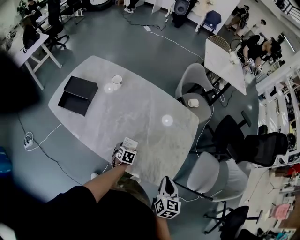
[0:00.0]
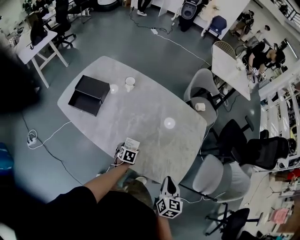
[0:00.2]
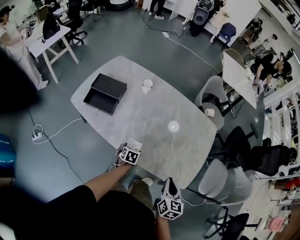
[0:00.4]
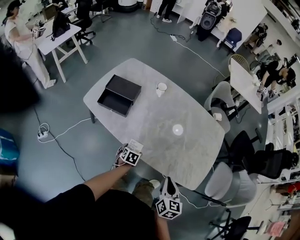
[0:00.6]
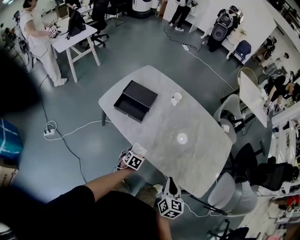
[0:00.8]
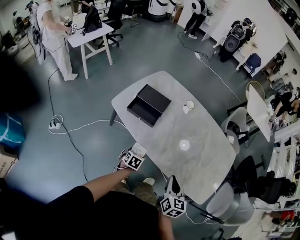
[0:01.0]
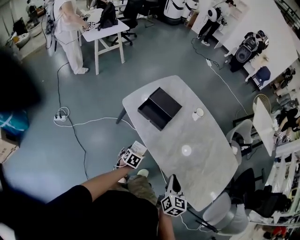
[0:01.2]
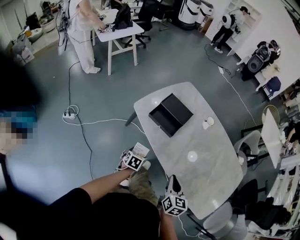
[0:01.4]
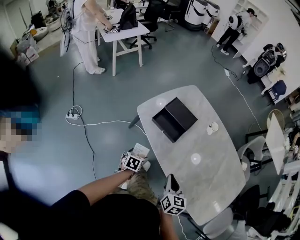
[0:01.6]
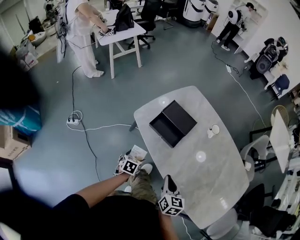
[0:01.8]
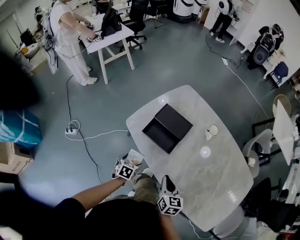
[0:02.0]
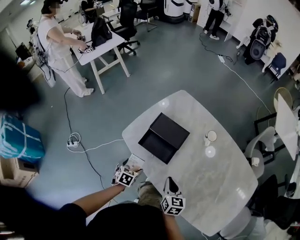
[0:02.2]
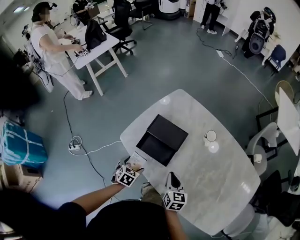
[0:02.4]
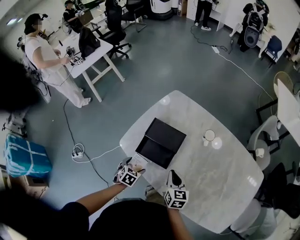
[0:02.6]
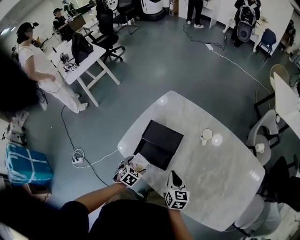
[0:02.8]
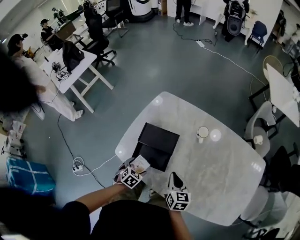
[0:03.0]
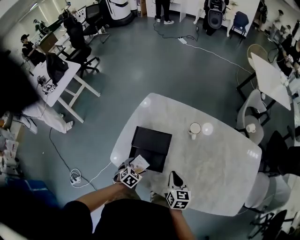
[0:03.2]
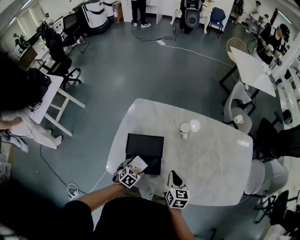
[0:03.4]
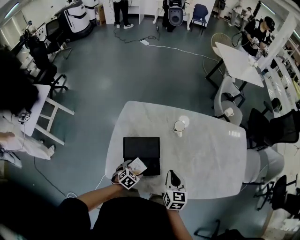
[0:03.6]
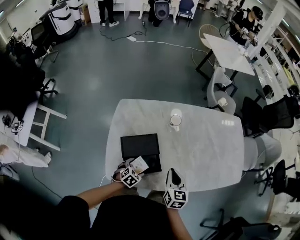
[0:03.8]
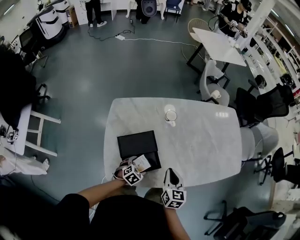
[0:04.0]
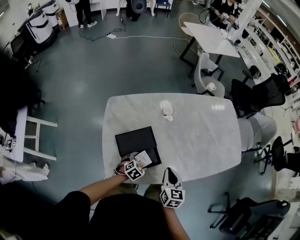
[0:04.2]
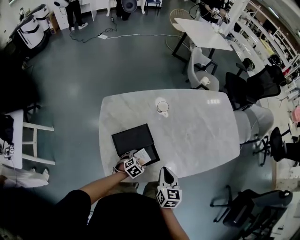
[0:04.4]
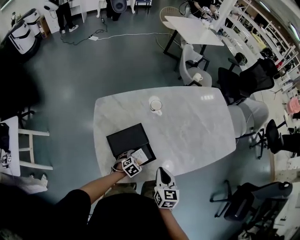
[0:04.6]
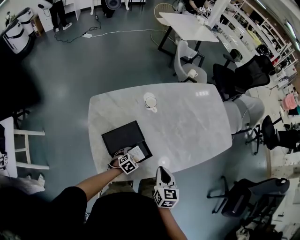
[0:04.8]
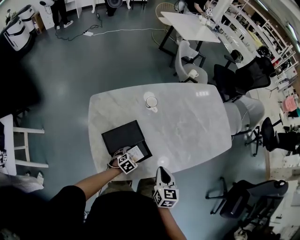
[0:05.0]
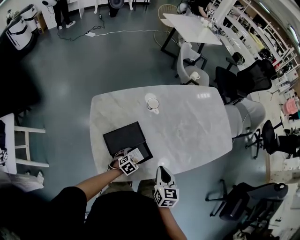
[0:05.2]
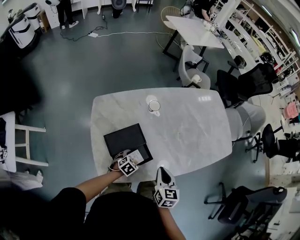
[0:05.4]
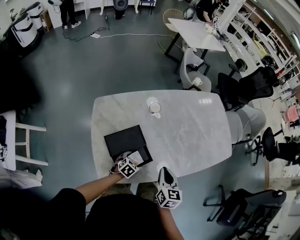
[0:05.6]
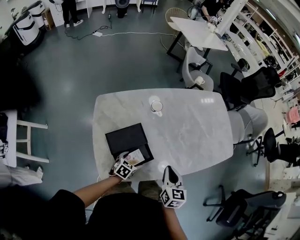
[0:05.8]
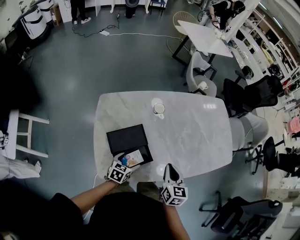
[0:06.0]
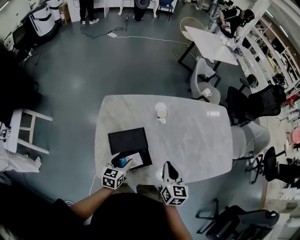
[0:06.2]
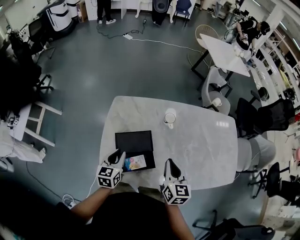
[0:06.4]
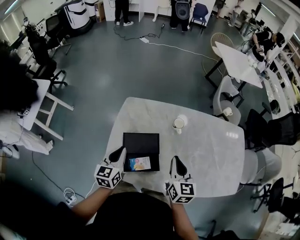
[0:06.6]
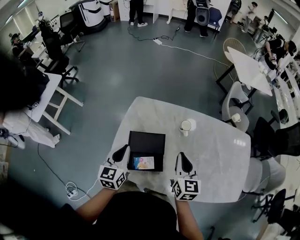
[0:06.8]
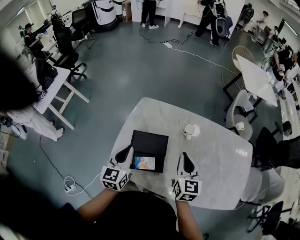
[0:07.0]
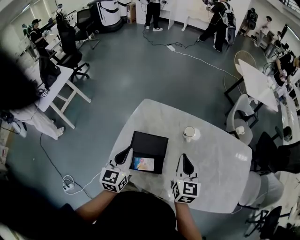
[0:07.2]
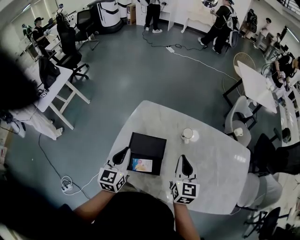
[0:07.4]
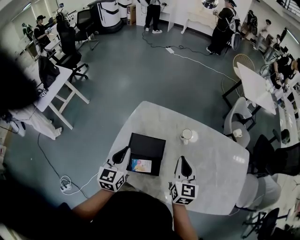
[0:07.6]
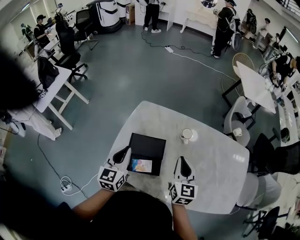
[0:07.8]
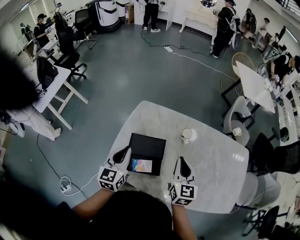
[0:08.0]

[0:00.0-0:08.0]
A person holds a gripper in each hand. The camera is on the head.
0:00.0 to 0:01.6: The pair of grippers is taken about 50 cm. The left gripper changes its angle by some 30 degrees, while the right gripper rotates about 30 degrees.
0:01.6 to 0:03.2: The right gripper moves some 25 cm, and rotates some 20 degrees, while the left gripper changes place by about 25 cm, and rolls clockwise, seen from behind, by approximately 50 degrees.
0:03.2 to 0:04.8: The left gripper shifts by roughly 10 cm, and rotates around the line of its fingers by some 40 degrees, clockwise from behind; the right gripper shifts by roughly 10 cm, and rotates approximately 40 degrees.
0:04.8 to 0:06.4: The left gripper is displaced upward by some 20 cm, angles its fingers upward, by about 30 degrees, and closes; the right gripper changes place by approximately 15 cm, and swivels about 20 degrees.
0:06.4 to 0:08.0: The right gripper moves upward, about 5 cm; the left gripper moves upward, roughly 10 cm, and turns by some 20 degrees.

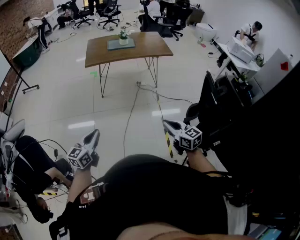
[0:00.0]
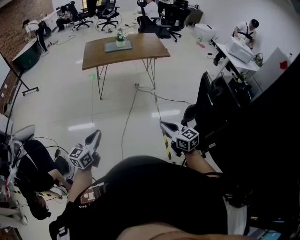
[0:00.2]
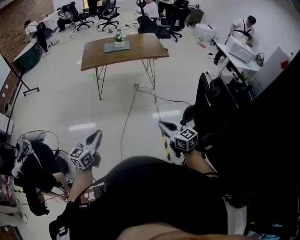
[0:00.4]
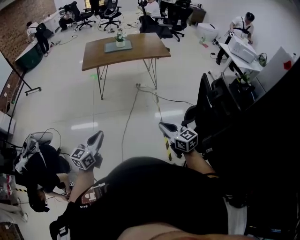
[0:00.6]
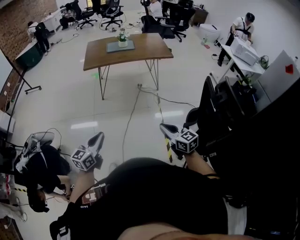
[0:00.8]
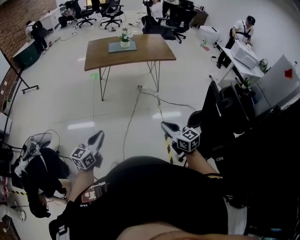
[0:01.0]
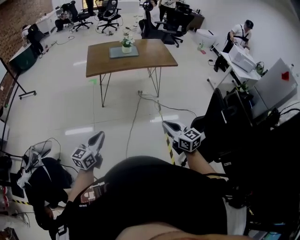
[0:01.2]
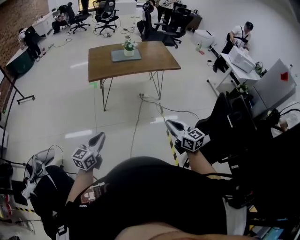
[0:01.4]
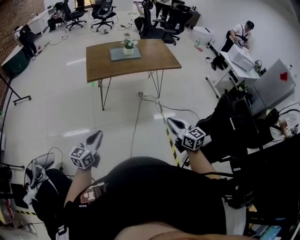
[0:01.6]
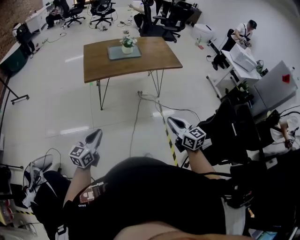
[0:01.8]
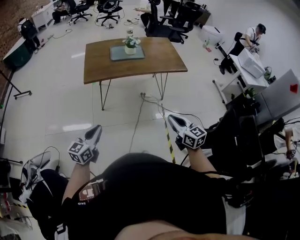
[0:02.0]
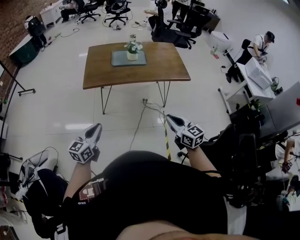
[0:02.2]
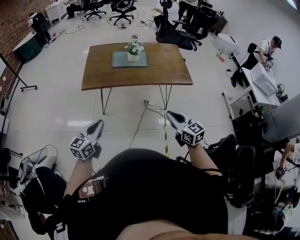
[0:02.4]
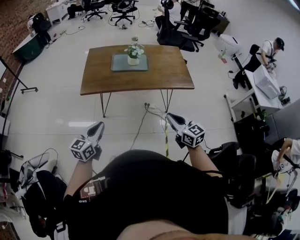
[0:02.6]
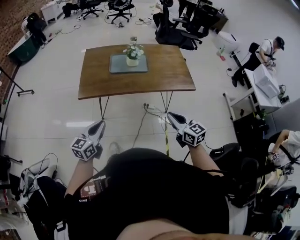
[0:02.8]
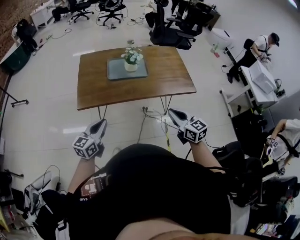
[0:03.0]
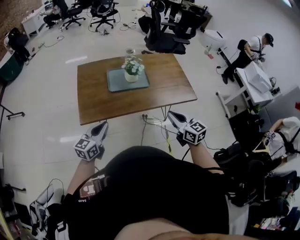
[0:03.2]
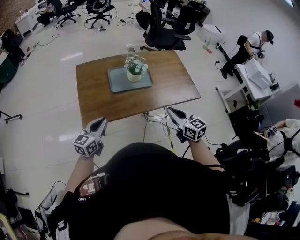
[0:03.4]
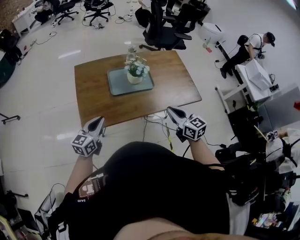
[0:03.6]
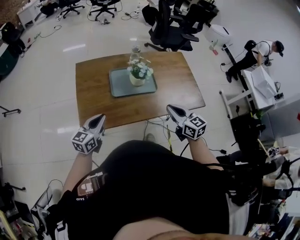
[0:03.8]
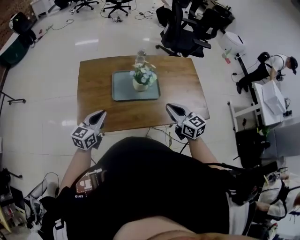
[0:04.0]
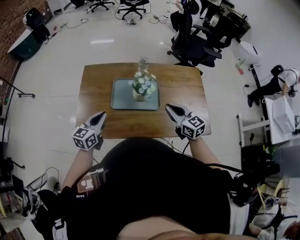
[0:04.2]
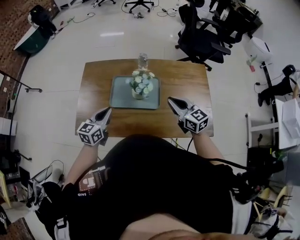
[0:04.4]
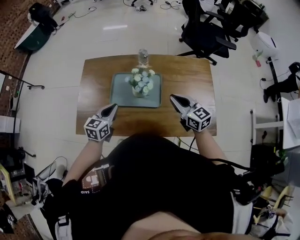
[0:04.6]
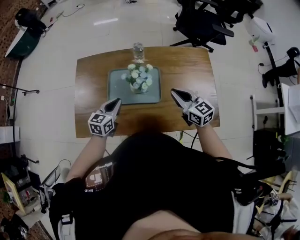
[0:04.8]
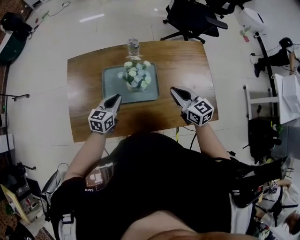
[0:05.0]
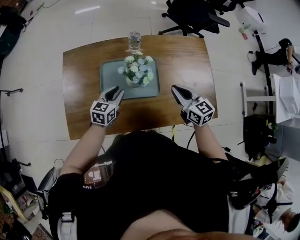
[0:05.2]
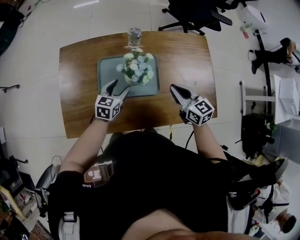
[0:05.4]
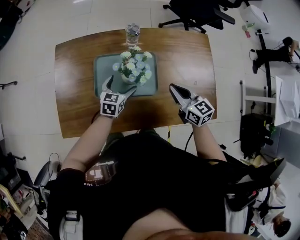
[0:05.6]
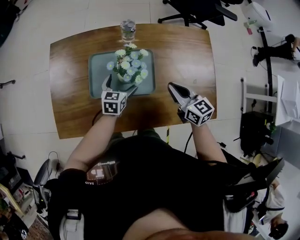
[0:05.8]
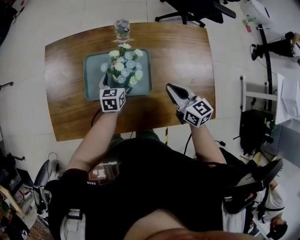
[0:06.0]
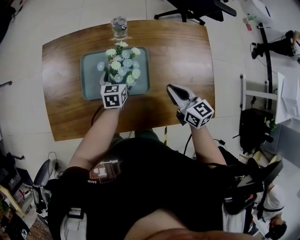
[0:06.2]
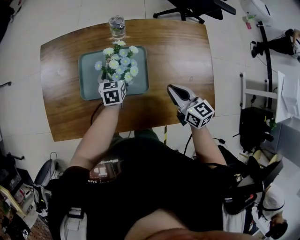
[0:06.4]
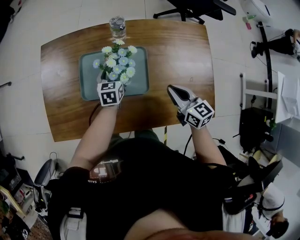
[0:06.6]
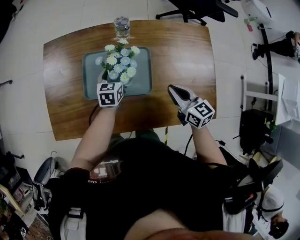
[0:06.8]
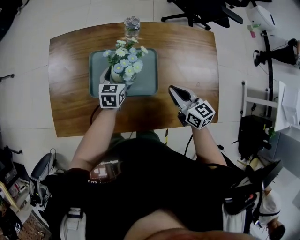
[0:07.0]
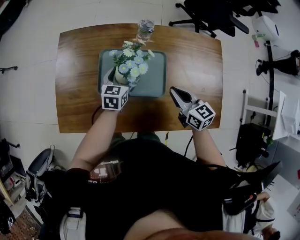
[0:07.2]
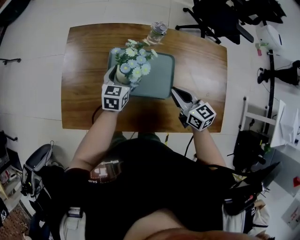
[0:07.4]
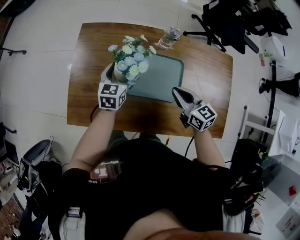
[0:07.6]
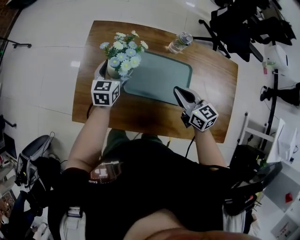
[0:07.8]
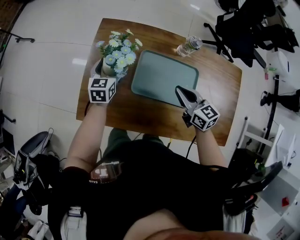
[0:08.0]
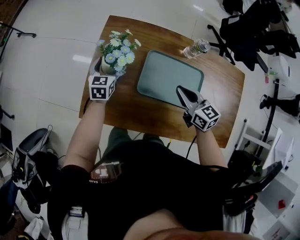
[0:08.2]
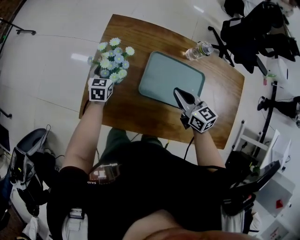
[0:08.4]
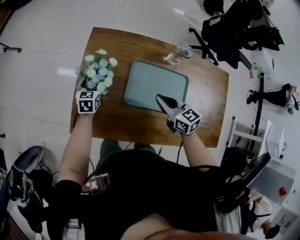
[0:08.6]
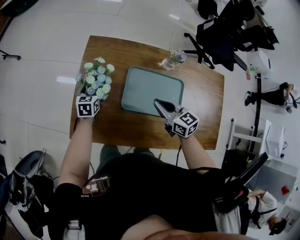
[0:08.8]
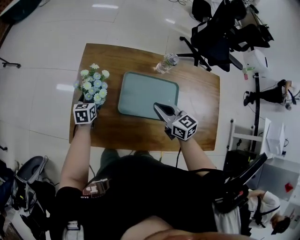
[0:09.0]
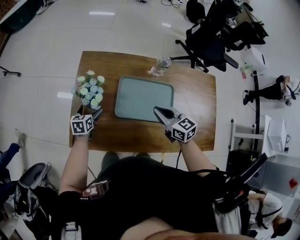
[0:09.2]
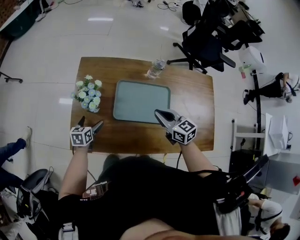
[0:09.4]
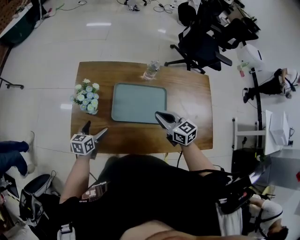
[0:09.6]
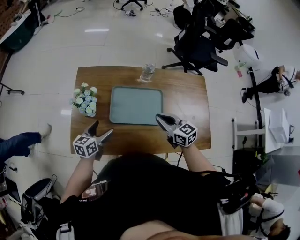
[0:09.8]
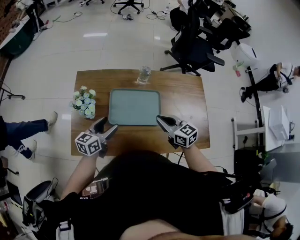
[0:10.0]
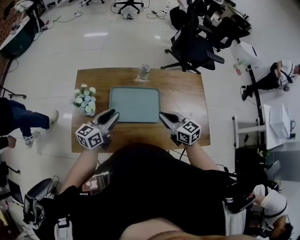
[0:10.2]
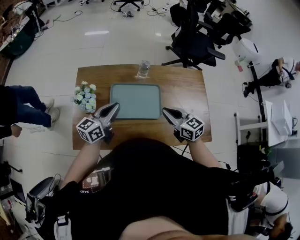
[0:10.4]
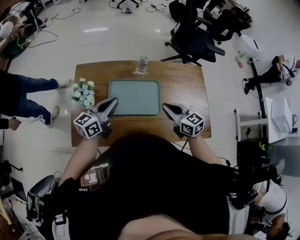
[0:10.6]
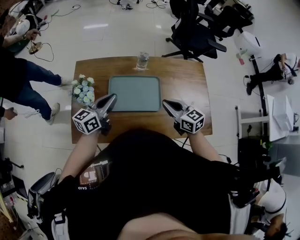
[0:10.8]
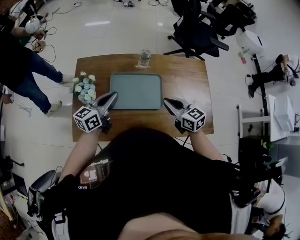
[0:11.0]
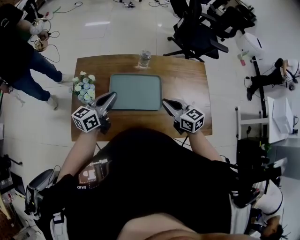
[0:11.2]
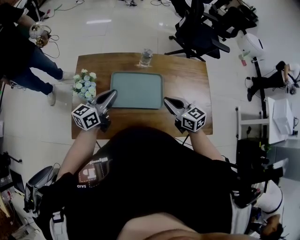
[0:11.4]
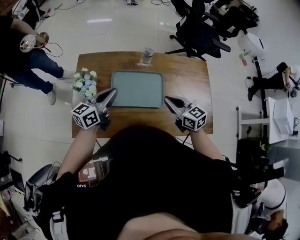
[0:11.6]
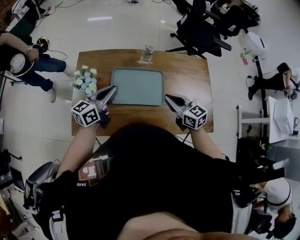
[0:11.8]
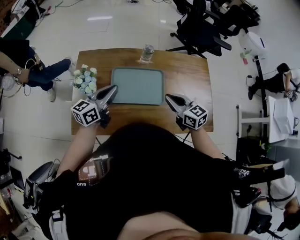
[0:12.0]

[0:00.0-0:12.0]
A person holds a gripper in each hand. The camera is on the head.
0:00.0 to 0:01.6: Both grippers move forward and to the left, some 25 cm.
0:01.6 to 0:03.0: The two grippers travel together, forward, about 40 cm.
0:03.0 to 0:04.4: Both grippers move forward, about 40 cm.
0:04.4 to 0:06.0: The left gripper heads downward, forward and to the right, covering some 30 cm, and opens up. Meanwhile the right gripper moves downward, about 15 cm.
0:06.0 to 0:07.6: The right gripper heads to the left, covering about 10 cm. Meanwhile the left gripper shifts some 15 cm to the left and upward.
0:07.6 to 0:09.0: The left gripper goes some 20 cm to the left and downward; the right gripper goes about 10 cm to the left.
0:09.0 to 0:10.4: The left gripper travels upward and to the right by approximately 30 cm, tips its fingers upward by about 40 degrees, and closes its fingers; the right gripper is displaced to the right, upward and backward by some 15 cm.
0:10.4 to 0:12.0: The two grippers keep their place.

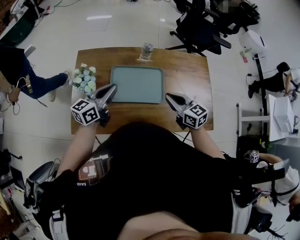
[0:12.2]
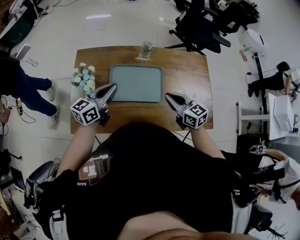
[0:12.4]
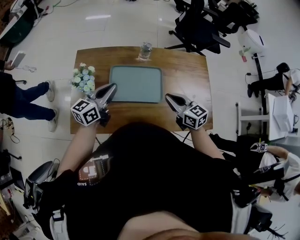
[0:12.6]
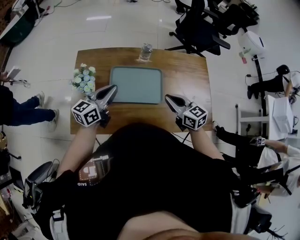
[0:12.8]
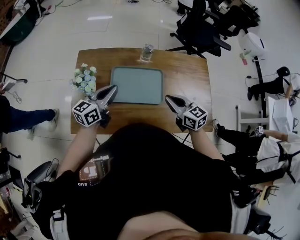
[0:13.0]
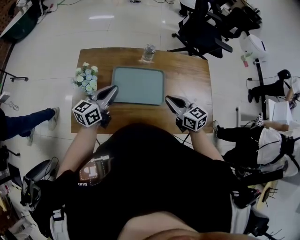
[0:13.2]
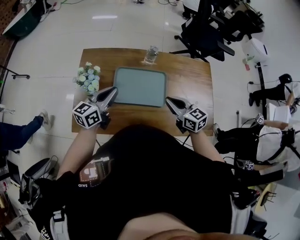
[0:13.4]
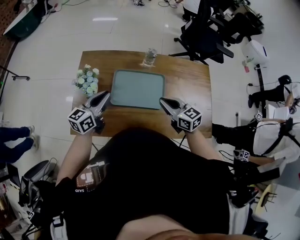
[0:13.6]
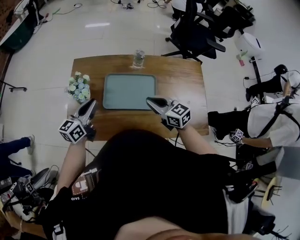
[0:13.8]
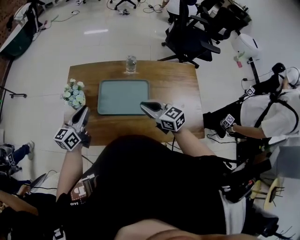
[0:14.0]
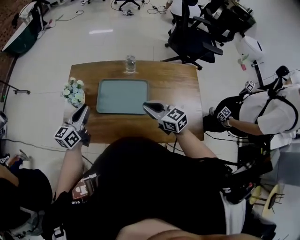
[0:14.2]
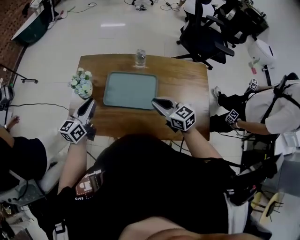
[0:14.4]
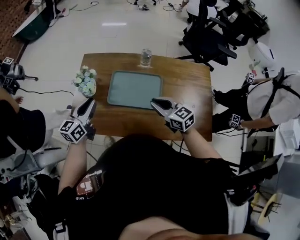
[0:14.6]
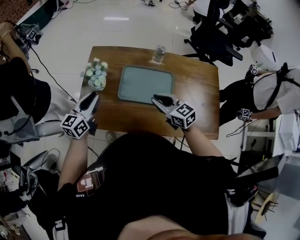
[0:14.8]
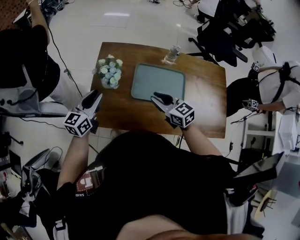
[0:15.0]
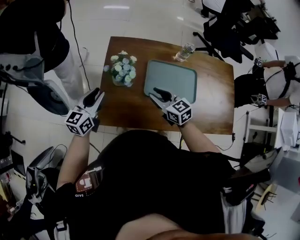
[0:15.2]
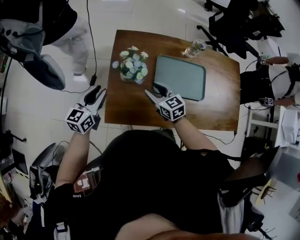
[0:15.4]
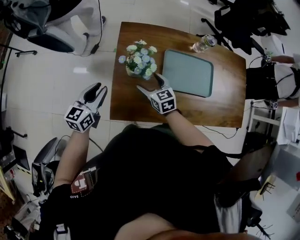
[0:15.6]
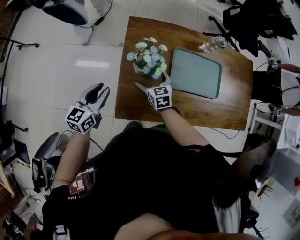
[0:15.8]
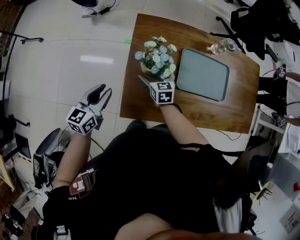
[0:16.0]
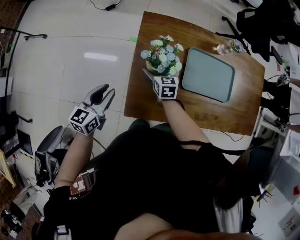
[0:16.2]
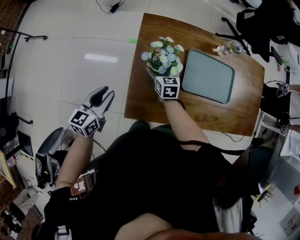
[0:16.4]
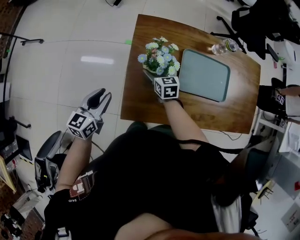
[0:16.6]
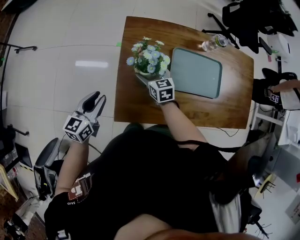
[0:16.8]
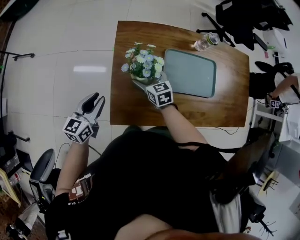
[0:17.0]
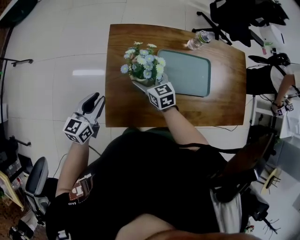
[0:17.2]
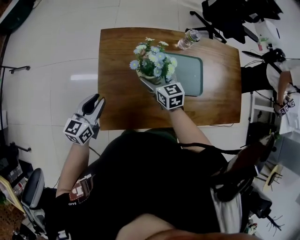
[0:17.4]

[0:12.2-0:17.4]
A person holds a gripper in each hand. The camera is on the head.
0:12.2 to 0:14.0: The left gripper heads to the left, covering approximately 5 cm.
0:14.0 to 0:15.6: The left gripper goes roughly 30 cm to the left. The right gripper is displaced to the left, downward and forward by some 40 cm, turns by about 20 degrees, and opens its fingers.
0:15.6 to 0:17.4: The left gripper travels to the right by roughly 5 cm. The right gripper moves to the right and forward, some 10 cm.
